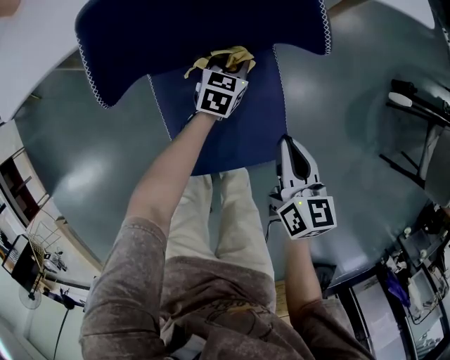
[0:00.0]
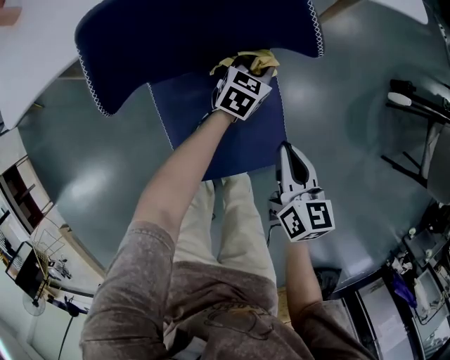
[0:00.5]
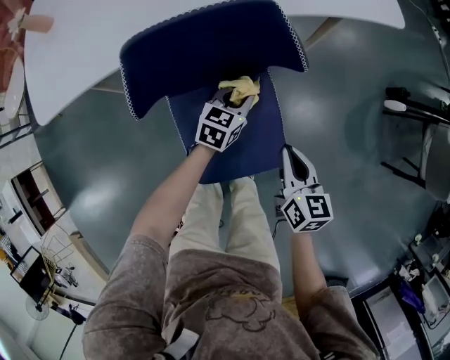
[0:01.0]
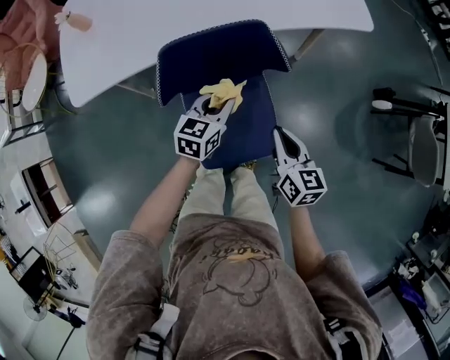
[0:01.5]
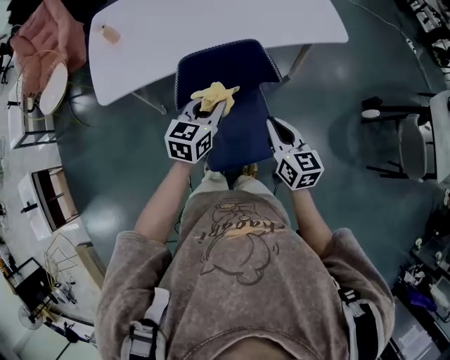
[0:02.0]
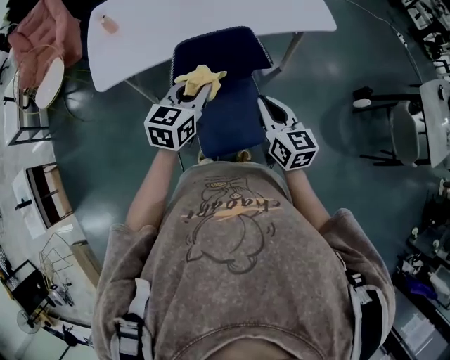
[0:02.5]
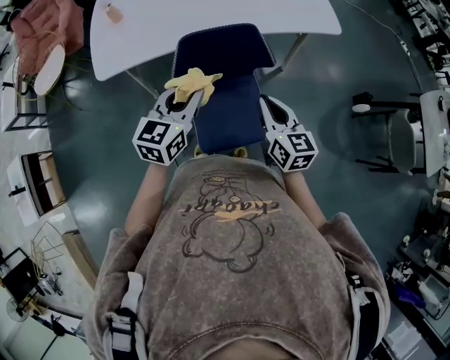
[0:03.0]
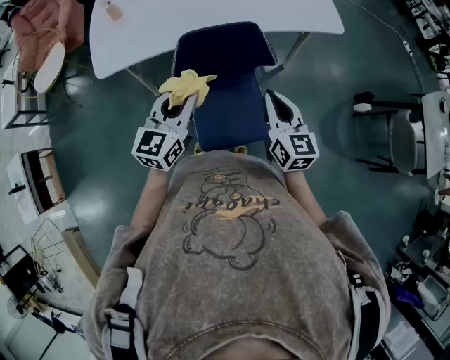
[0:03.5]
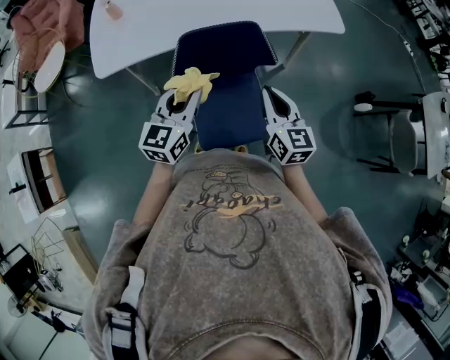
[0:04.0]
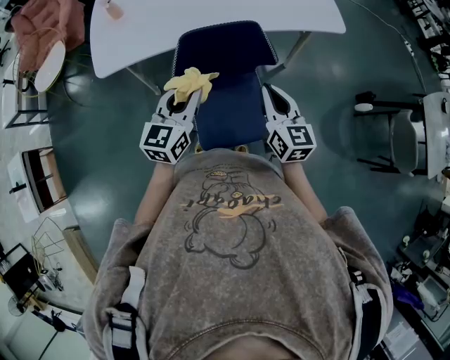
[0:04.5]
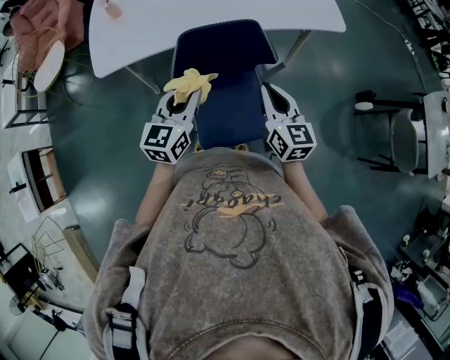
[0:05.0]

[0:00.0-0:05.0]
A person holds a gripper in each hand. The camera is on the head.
0:00.0 to 0:02.5: The right gripper goes about 30 cm upward, and swivels about 20 degrees, while the left gripper moves upward, approximately 50 cm.

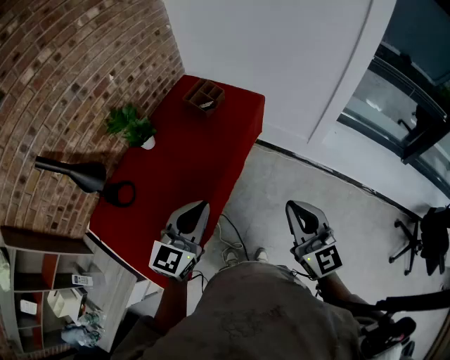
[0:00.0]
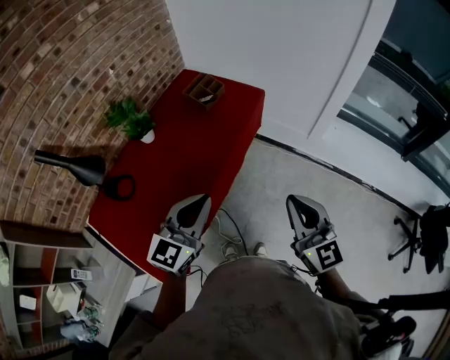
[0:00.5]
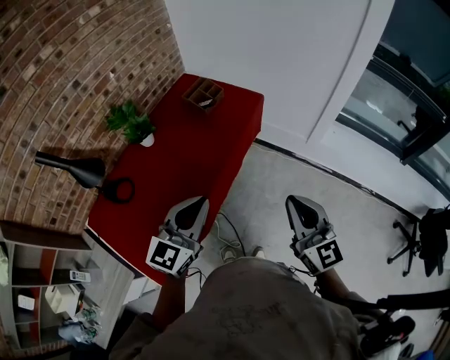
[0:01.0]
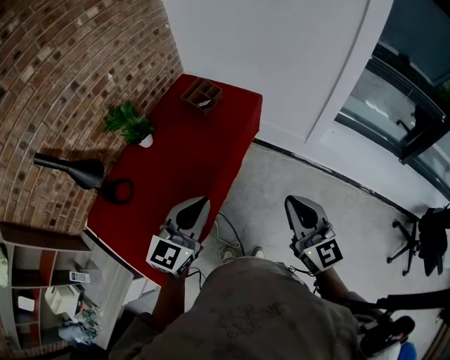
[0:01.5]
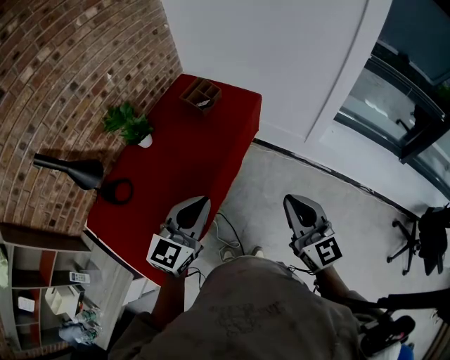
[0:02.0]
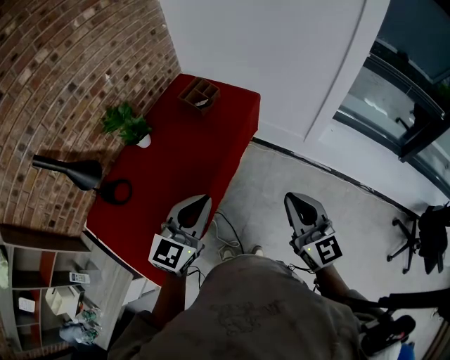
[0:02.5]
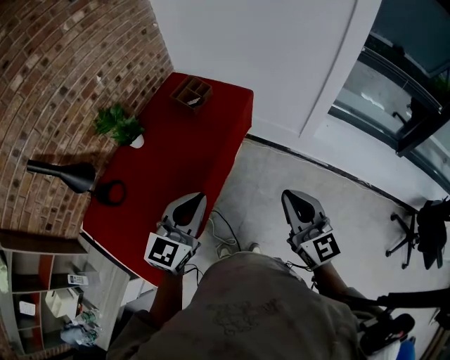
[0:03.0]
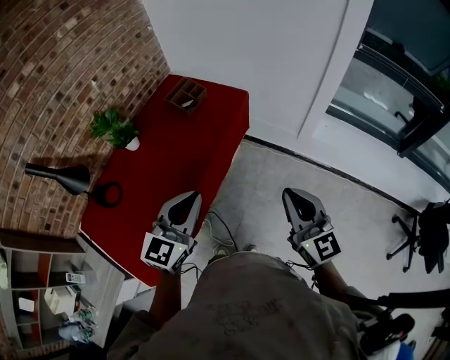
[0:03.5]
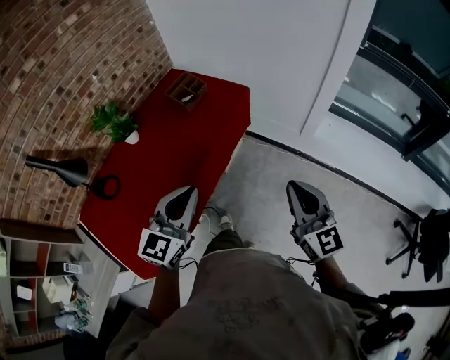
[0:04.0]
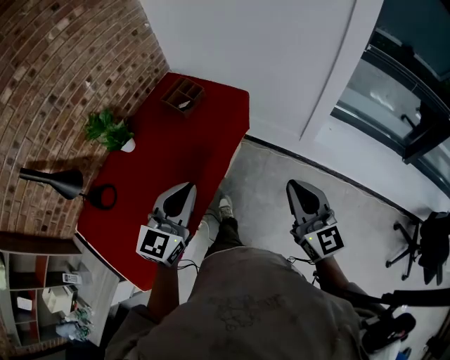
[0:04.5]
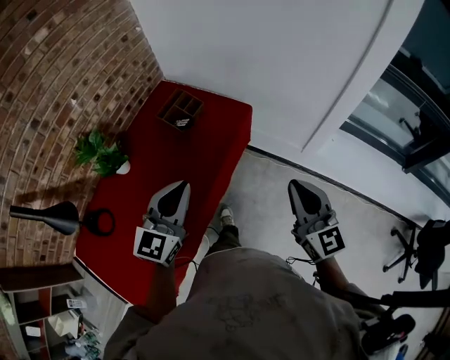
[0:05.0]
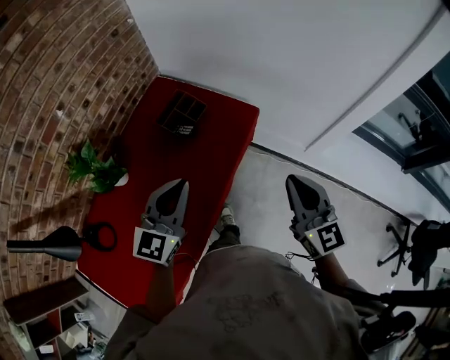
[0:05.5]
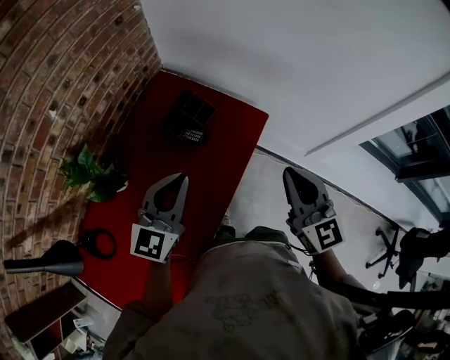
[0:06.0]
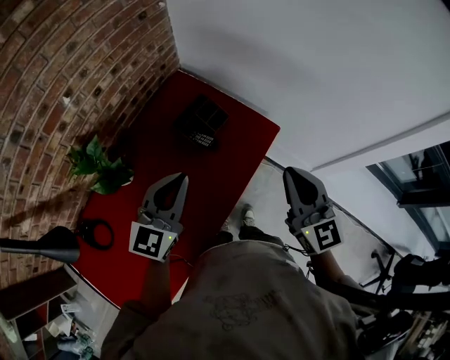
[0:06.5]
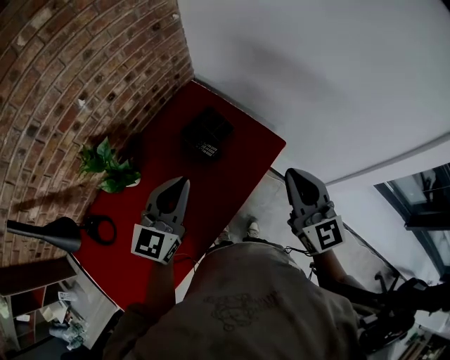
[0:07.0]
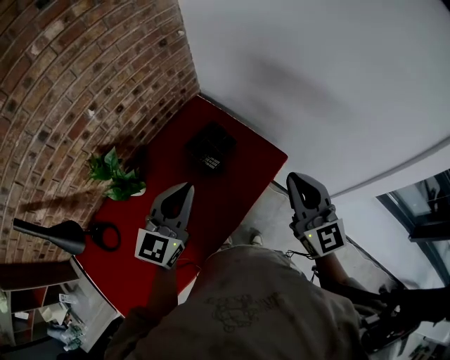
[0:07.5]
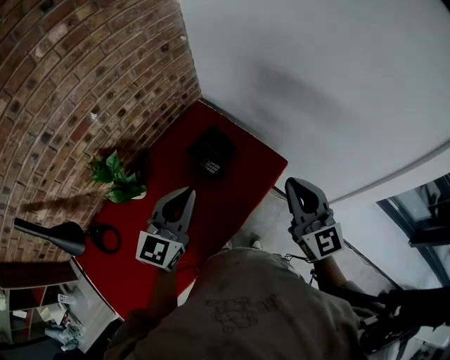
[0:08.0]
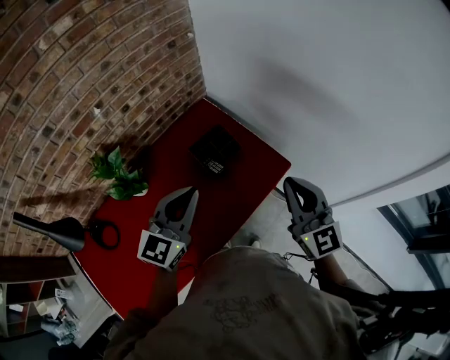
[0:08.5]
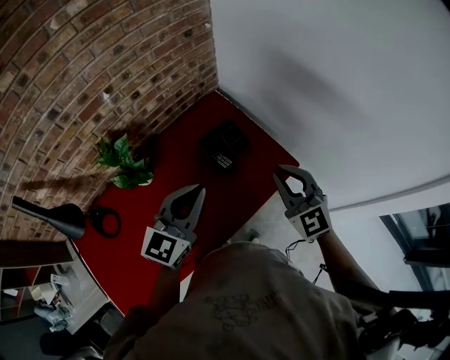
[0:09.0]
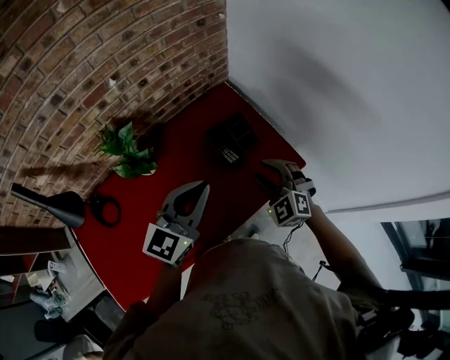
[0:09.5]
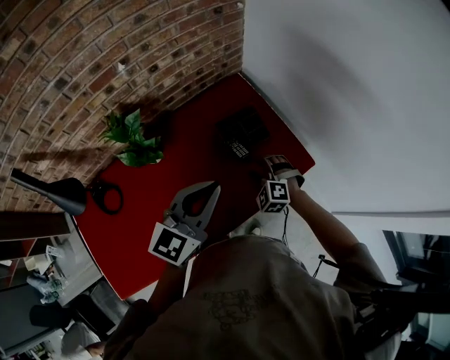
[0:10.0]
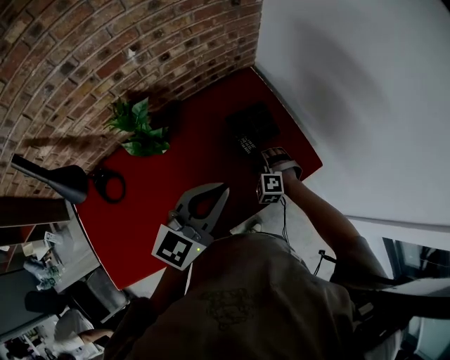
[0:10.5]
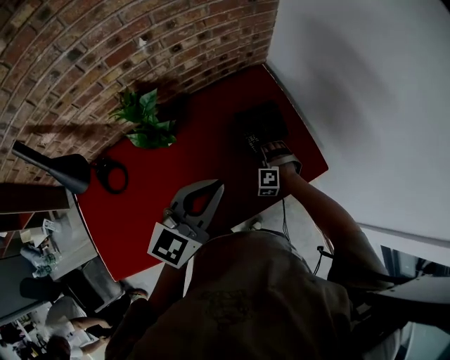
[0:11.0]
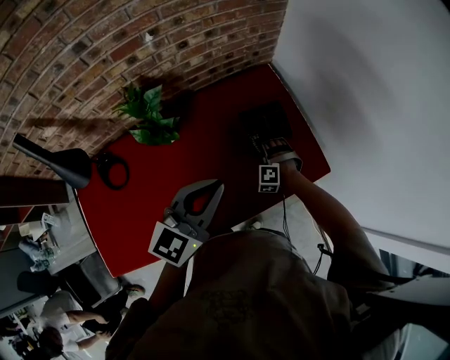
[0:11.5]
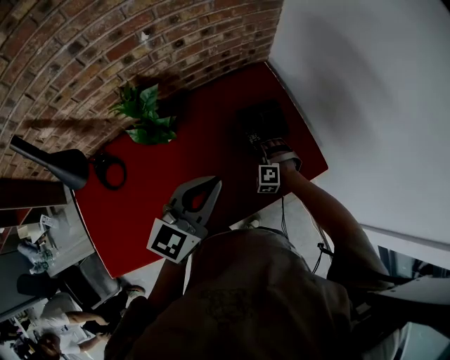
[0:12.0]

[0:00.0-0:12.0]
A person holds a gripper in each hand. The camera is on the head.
0:00.0 to 0:02.0: The grippers move only a little.
0:02.0 to 0:04.0: The right gripper goes approximately 10 cm to the right. Meanwhile the left gripper travels to the right by some 10 cm.
0:04.0 to 0:06.0: The pair of grippers is taken forward and to the left, some 40 cm.
0:06.0 to 0:08.0: The right gripper goes approximately 5 cm forward.
0:08.0 to 0:10.0: The right gripper goes approximately 35 cm downward and to the left, tilts its fingers about 50 degrees downward, and opens up.
0:10.0 to 0:12.0: The right gripper is displaced downward and forward by roughly 10 cm, rotates roughly 20 degrees, and closes its fingers.

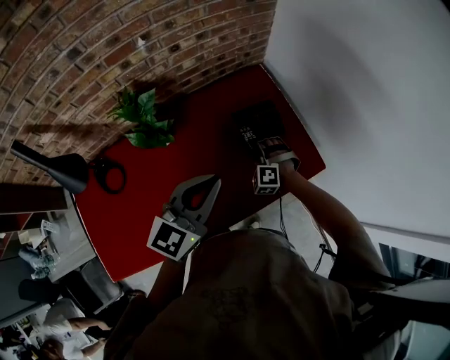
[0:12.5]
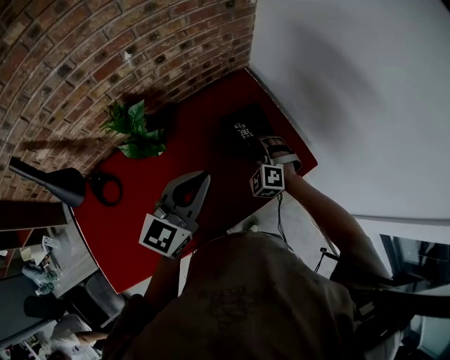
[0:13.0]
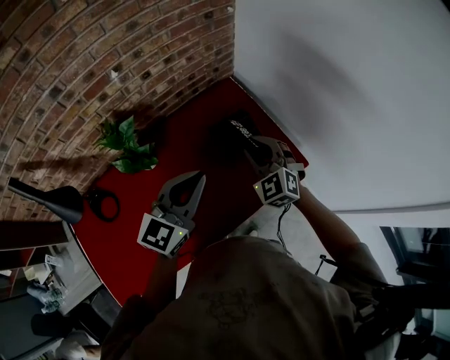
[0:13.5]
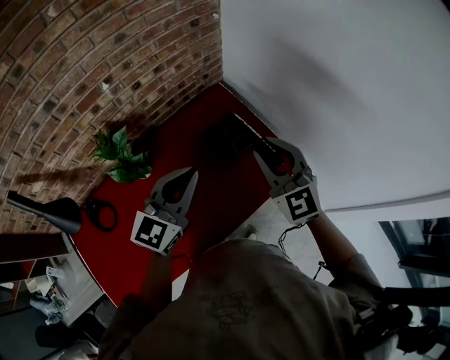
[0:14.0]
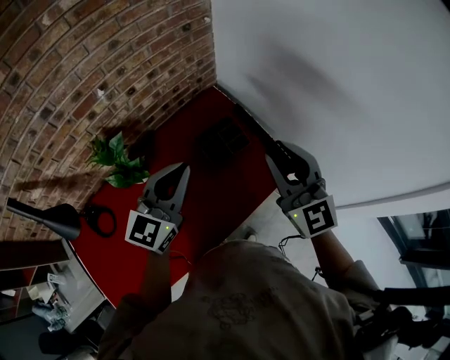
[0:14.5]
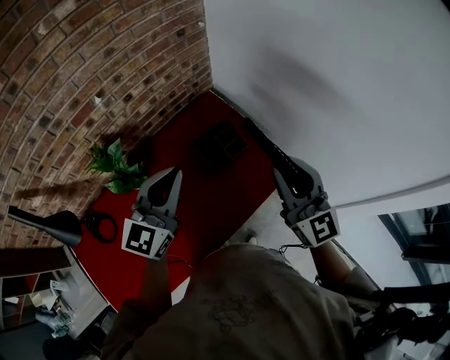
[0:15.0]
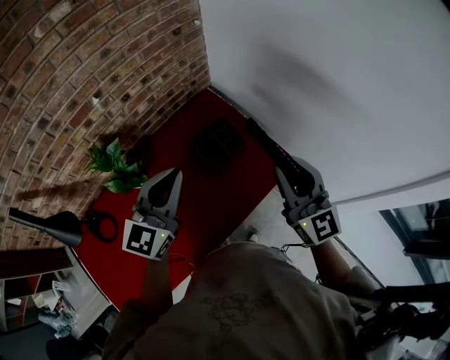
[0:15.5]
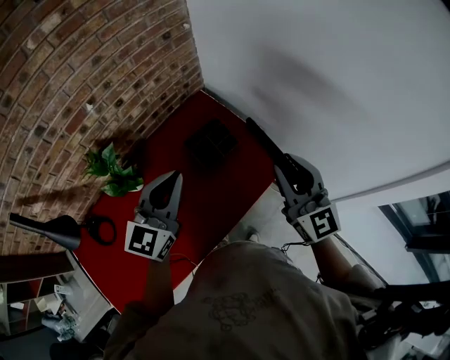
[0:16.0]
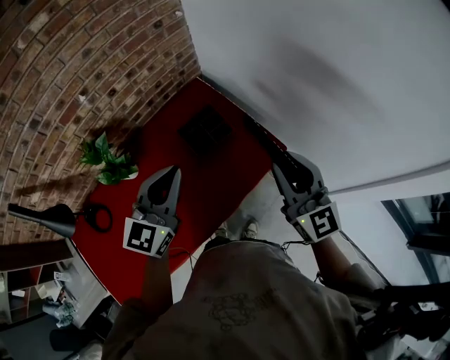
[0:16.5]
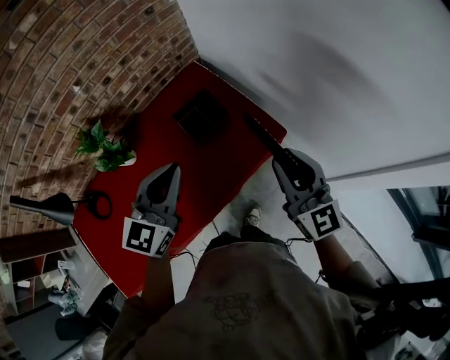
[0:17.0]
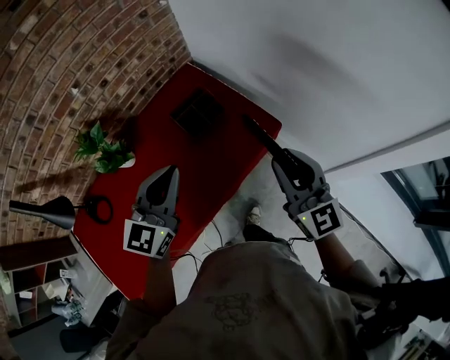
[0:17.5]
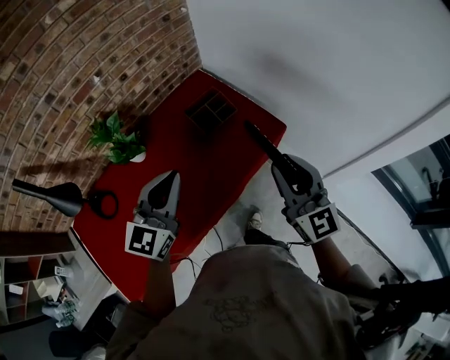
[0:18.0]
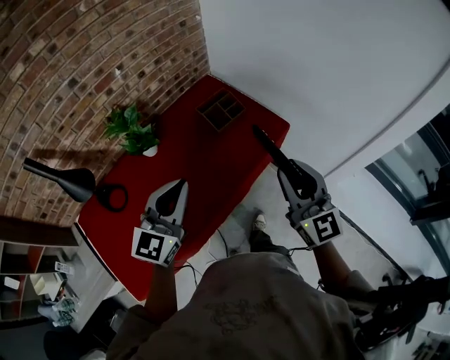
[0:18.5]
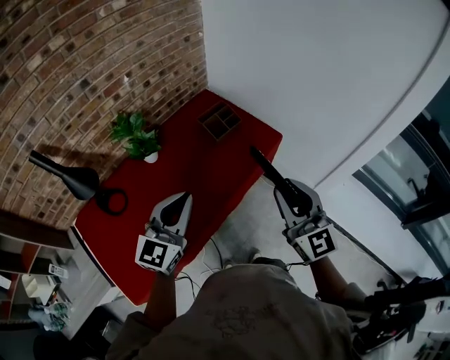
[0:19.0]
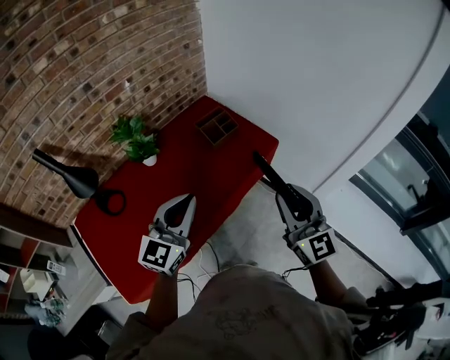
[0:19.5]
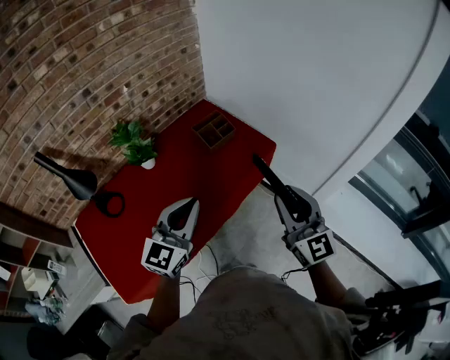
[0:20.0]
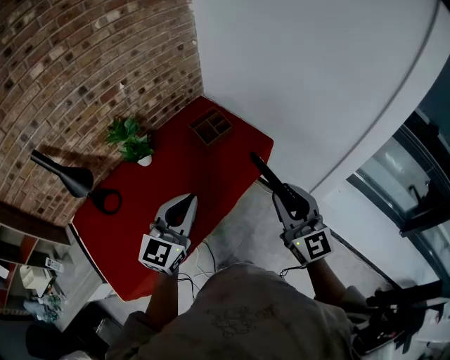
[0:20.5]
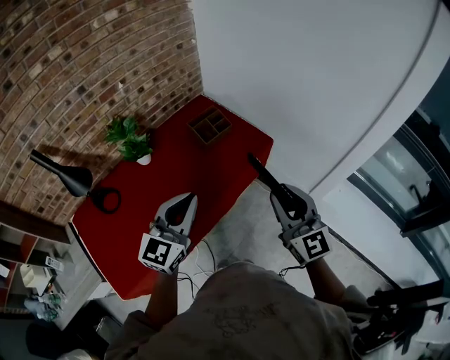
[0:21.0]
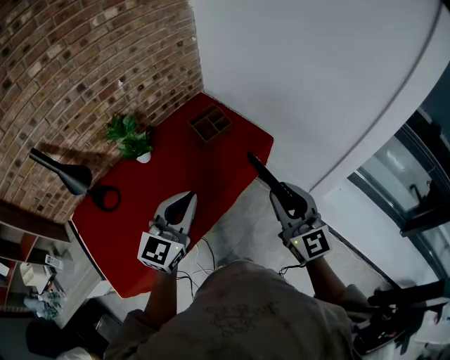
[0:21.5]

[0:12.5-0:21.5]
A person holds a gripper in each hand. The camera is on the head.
0:12.5 to 0:14.5: The left gripper heads forward, covering roughly 5 cm, while the right gripper moves upward, some 40 cm, and tips its fingers upward by roughly 50 degrees.
0:14.5 to 0:17.0: The right gripper shifts some 15 cm to the right, downward and backward, while the left gripper goes about 10 cm to the right and backward.
0:17.0 to 0:19.5: Both grippers move backward, roughly 30 cm.
0:19.5 to 0:21.5: The left gripper is displaced to the right by approximately 5 cm.

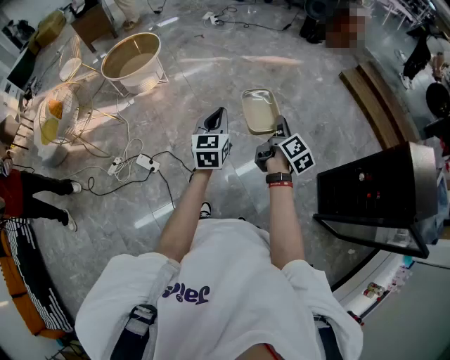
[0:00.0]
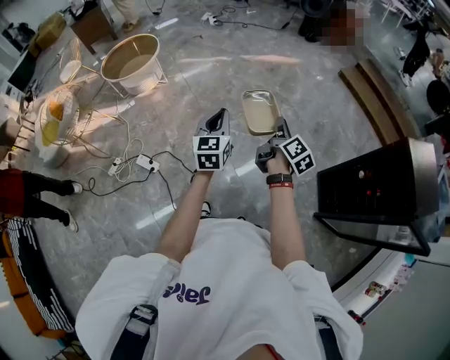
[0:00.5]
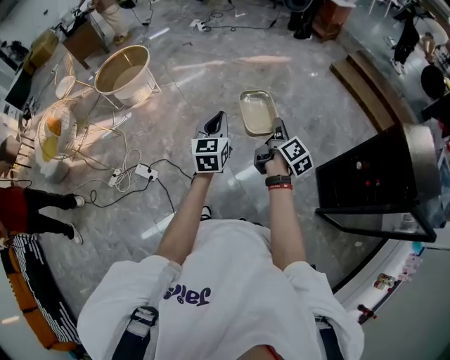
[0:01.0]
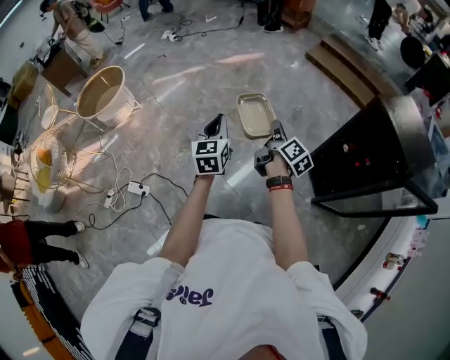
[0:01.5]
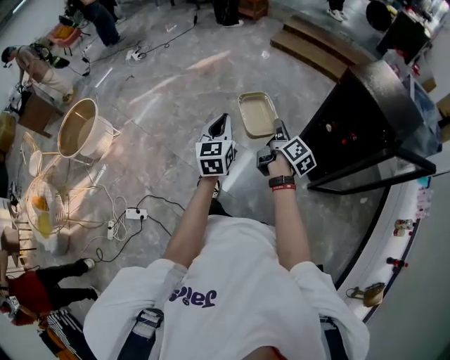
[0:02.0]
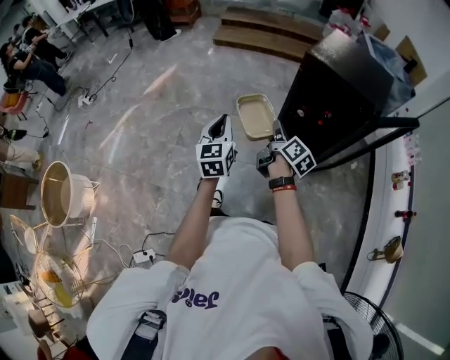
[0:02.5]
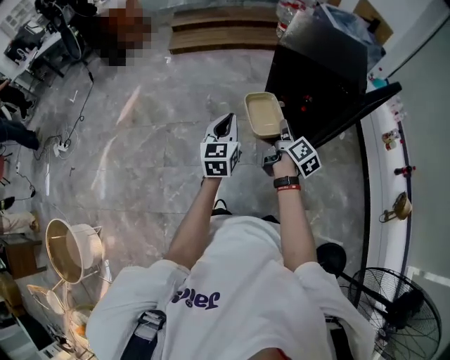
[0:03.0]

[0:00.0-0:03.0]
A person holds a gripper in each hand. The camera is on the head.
0:00.0 to 0:01.5: Both grippers move to the right, about 20 cm.
0:01.5 to 0:03.0: The right gripper changes place by about 25 cm, and changes its angle by some 50 degrees. The left gripper ends up approximately 35 cm from where it was, and changes its angle by approximately 50 degrees.
